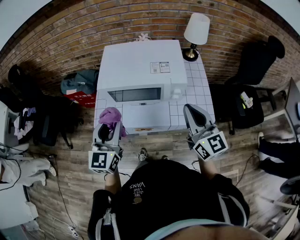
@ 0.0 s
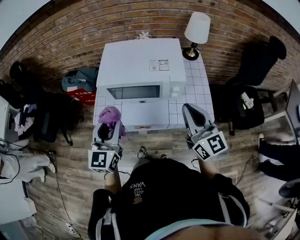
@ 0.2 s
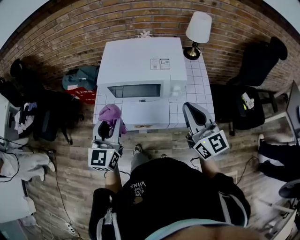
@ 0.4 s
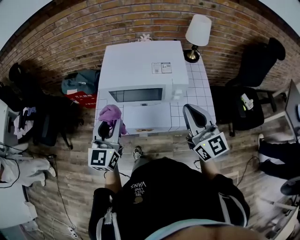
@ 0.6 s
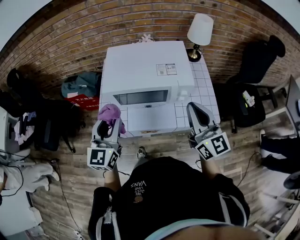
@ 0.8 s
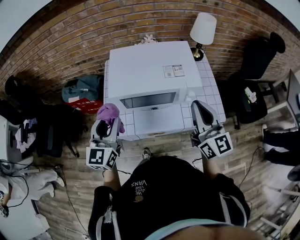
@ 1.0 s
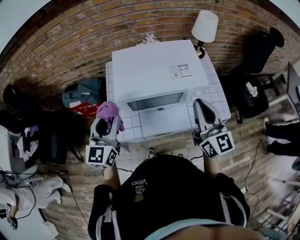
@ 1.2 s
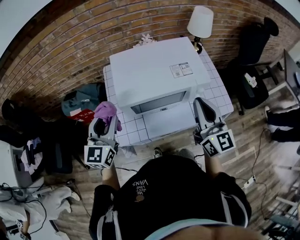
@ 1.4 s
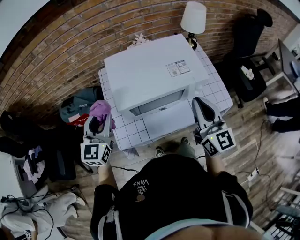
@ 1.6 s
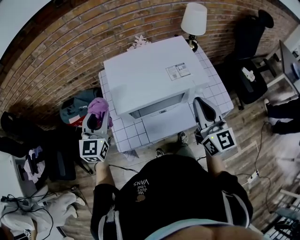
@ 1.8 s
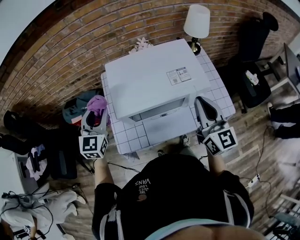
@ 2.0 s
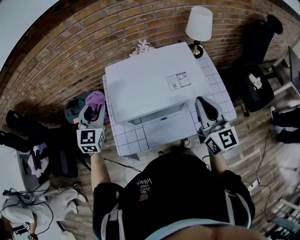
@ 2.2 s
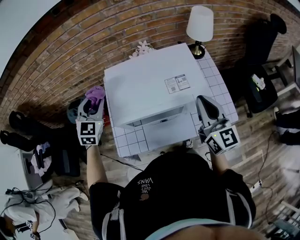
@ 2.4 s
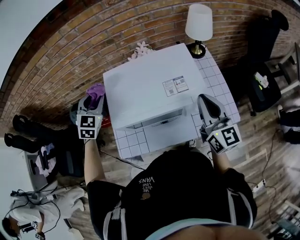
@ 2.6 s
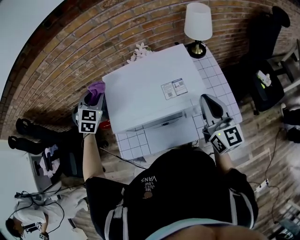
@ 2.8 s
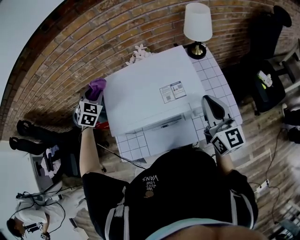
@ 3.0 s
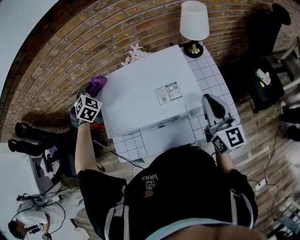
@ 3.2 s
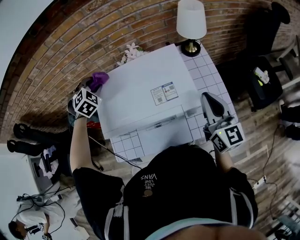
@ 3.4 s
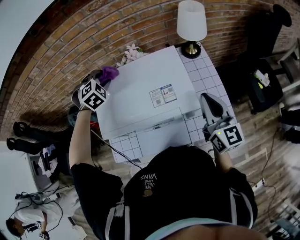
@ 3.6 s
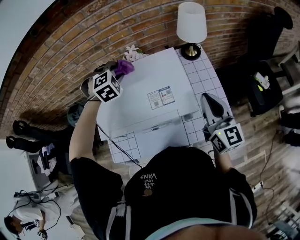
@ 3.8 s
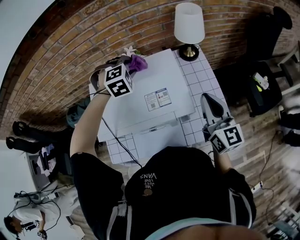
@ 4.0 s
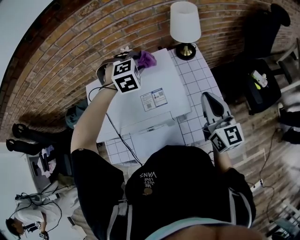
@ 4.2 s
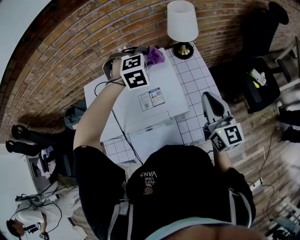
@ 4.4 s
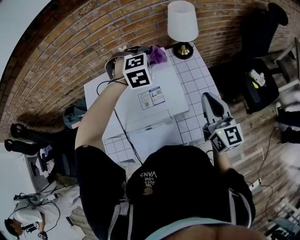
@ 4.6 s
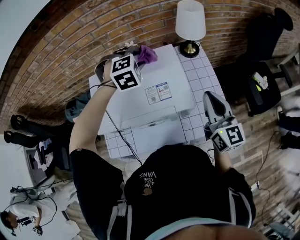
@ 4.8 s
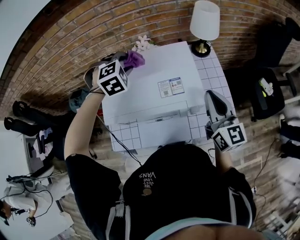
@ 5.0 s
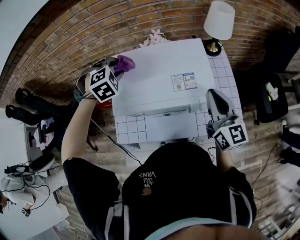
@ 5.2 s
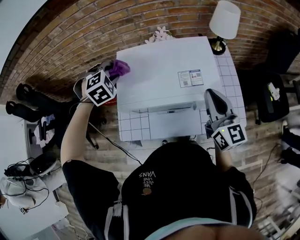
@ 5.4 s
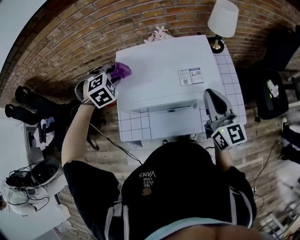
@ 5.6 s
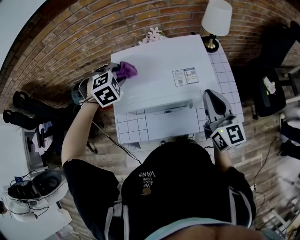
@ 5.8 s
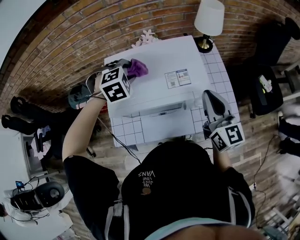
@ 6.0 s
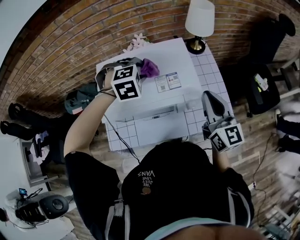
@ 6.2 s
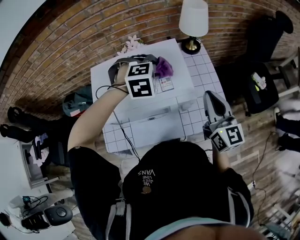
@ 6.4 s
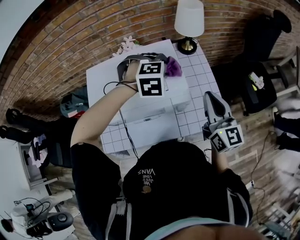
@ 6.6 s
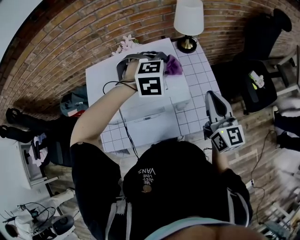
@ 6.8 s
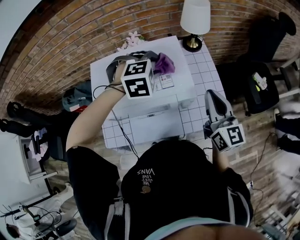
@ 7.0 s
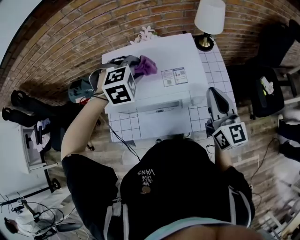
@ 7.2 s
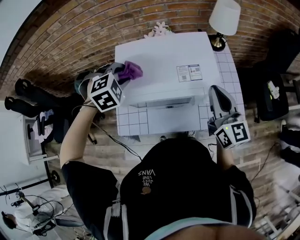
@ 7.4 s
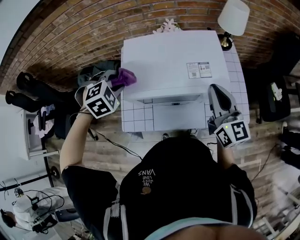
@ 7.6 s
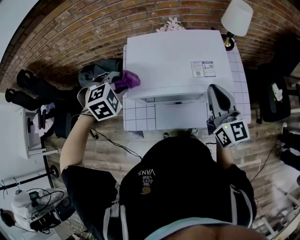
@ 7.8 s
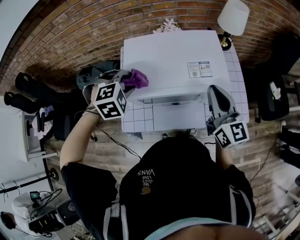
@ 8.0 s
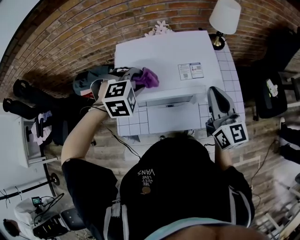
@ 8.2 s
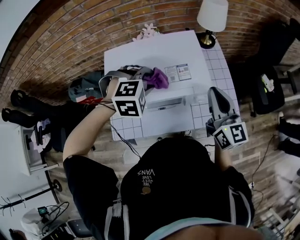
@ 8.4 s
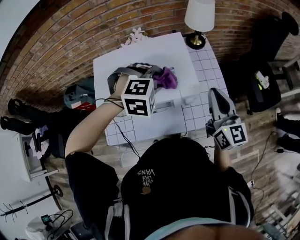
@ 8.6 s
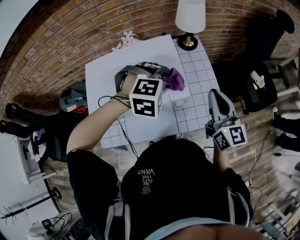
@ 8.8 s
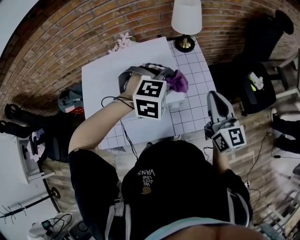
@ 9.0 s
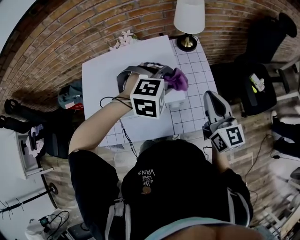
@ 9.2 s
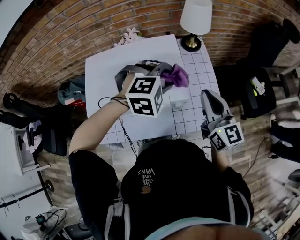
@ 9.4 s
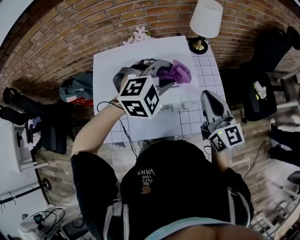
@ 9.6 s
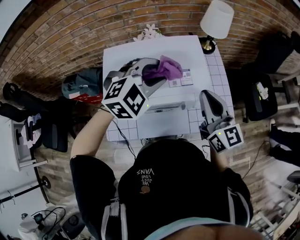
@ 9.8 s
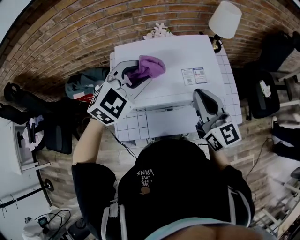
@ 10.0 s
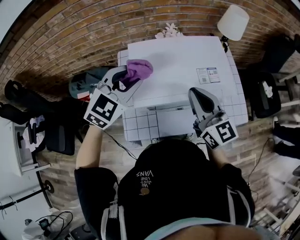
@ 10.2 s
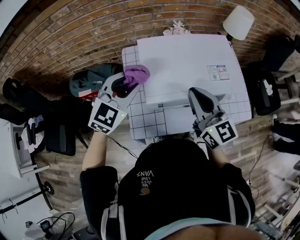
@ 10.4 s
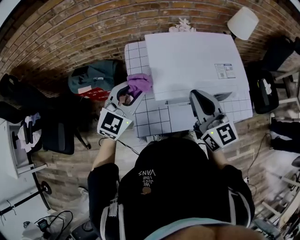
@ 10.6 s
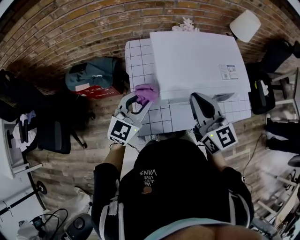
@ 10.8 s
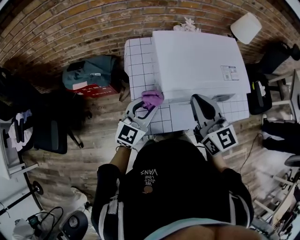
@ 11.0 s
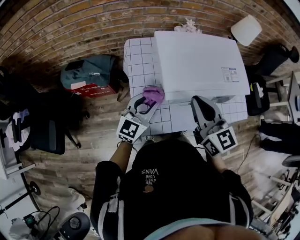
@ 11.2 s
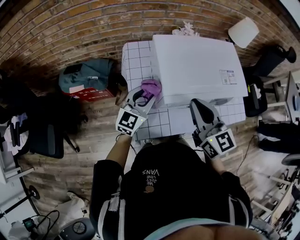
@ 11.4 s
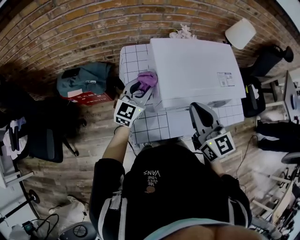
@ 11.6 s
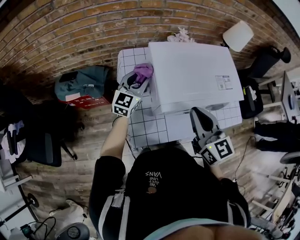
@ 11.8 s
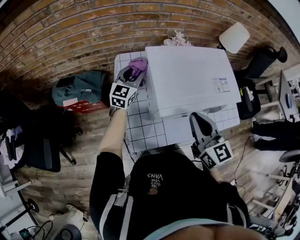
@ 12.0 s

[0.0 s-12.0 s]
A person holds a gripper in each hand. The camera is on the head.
0.0 to 1.6 s: The right gripper goes some 10 cm to the left and forward, and turns by some 20 degrees, while the left gripper travels forward and to the left by approximately 25 cm.
1.6 to 3.0 s: The left gripper moves forward, some 25 cm, and turns by approximately 50 degrees, while the right gripper moves forward and to the right, some 15 cm.
3.0 to 4.4 s: The left gripper moves to the right, about 35 cm, and changes its angle by roughly 40 degrees. The right gripper heads to the right, covering about 10 cm.
4.4 to 6.0 s: The right gripper travels to the left by about 10 cm. The left gripper shifts about 25 cm to the left and backward.
6.0 to 7.6 s: The right gripper shifts approximately 5 cm to the left. The left gripper heads backward, covering some 10 cm, and reaches about 25 cm to the right, then returns.
7.6 to 9.0 s: The right gripper moves roughly 20 cm; the left gripper moves roughly 40 cm, and changes its angle by some 40 degrees.
9.0 to 10.4 s: The two grippers go approximately 40 cm to the left. The left gripper tips its fingers upward by about 40 degrees.
10.4 to 12.0 s: The left gripper is displaced forward and downward by approximately 20 cm, and turns by approximately 30 degrees. Meanwhile the right gripper shifts by approximately 5 cm.

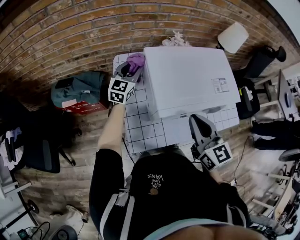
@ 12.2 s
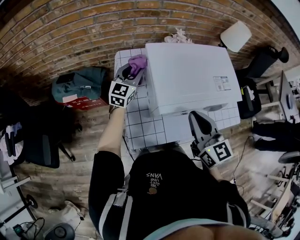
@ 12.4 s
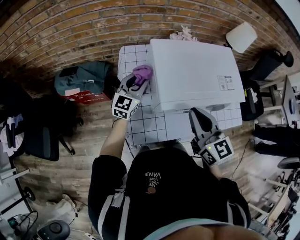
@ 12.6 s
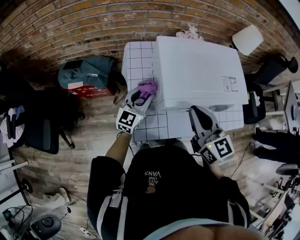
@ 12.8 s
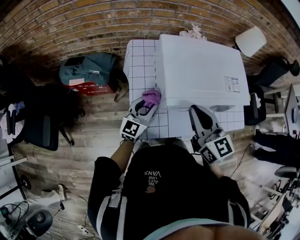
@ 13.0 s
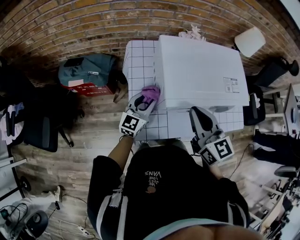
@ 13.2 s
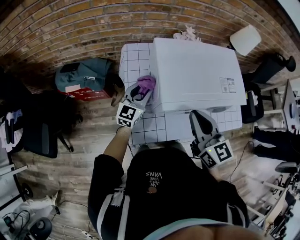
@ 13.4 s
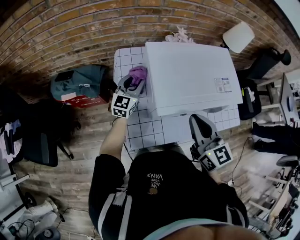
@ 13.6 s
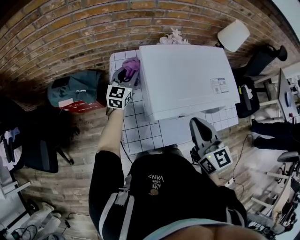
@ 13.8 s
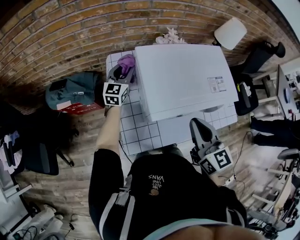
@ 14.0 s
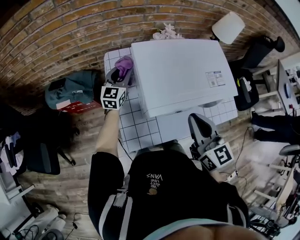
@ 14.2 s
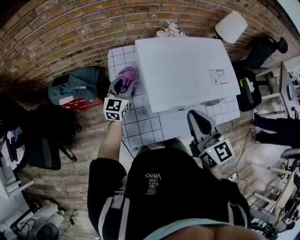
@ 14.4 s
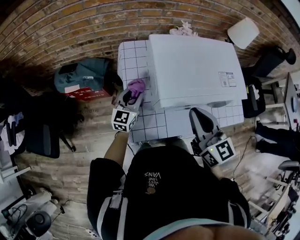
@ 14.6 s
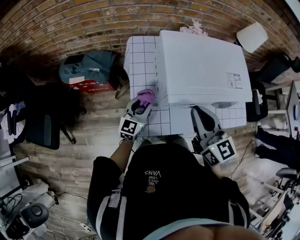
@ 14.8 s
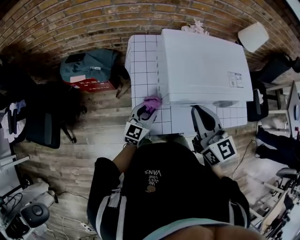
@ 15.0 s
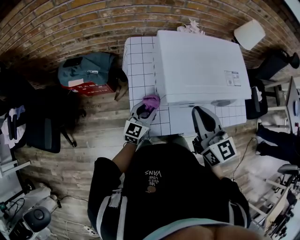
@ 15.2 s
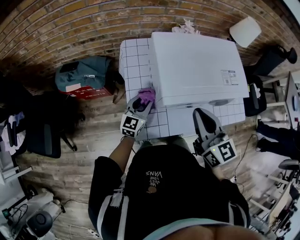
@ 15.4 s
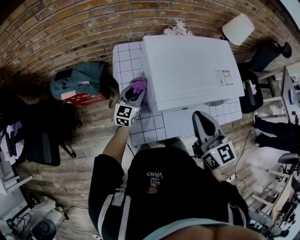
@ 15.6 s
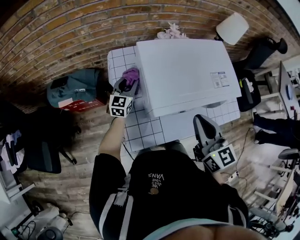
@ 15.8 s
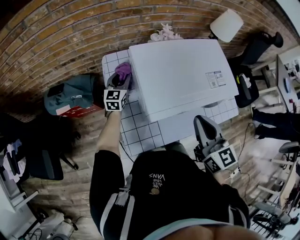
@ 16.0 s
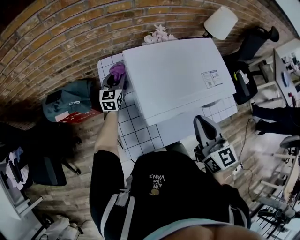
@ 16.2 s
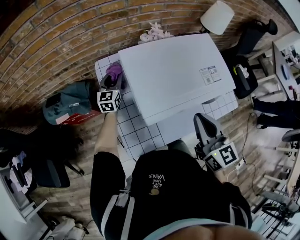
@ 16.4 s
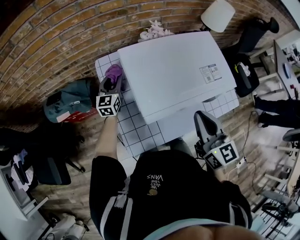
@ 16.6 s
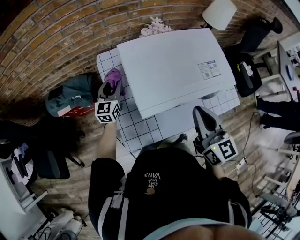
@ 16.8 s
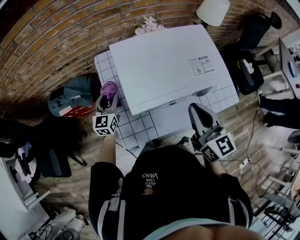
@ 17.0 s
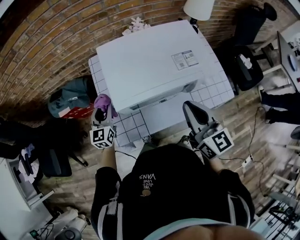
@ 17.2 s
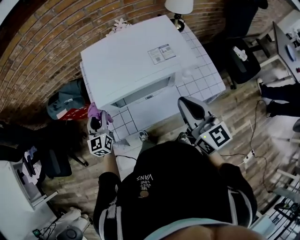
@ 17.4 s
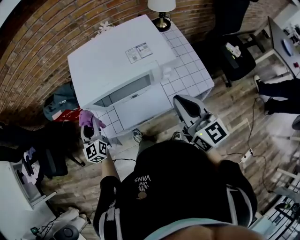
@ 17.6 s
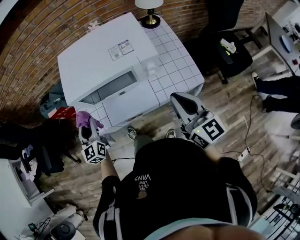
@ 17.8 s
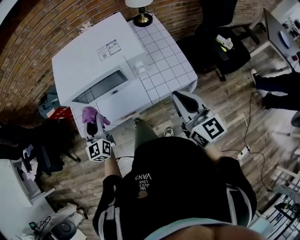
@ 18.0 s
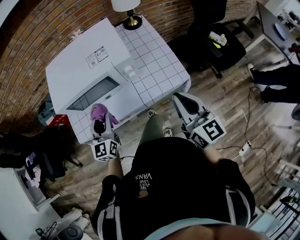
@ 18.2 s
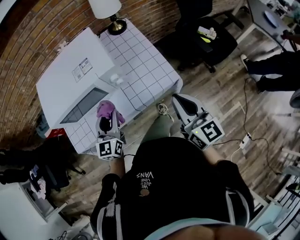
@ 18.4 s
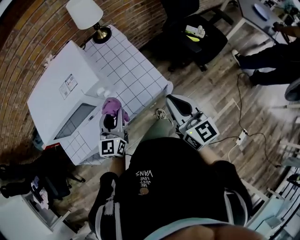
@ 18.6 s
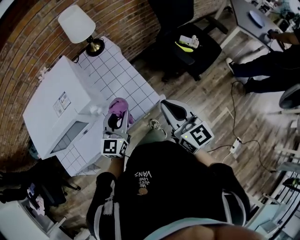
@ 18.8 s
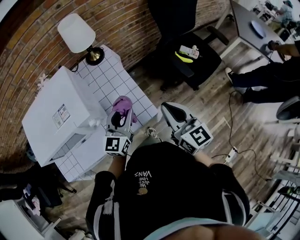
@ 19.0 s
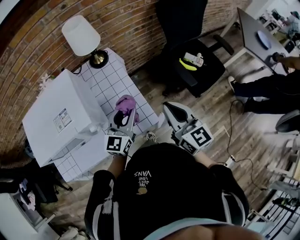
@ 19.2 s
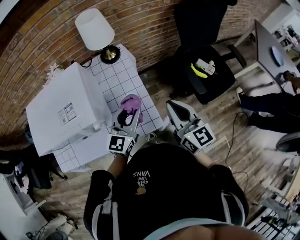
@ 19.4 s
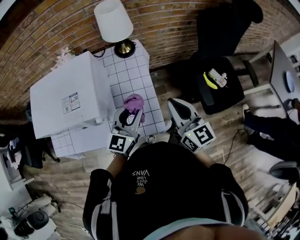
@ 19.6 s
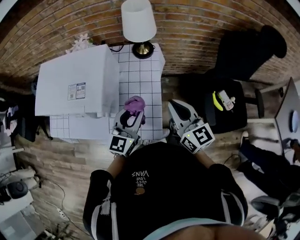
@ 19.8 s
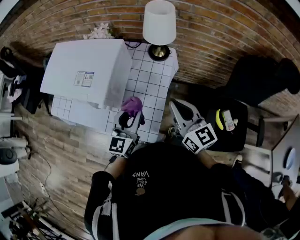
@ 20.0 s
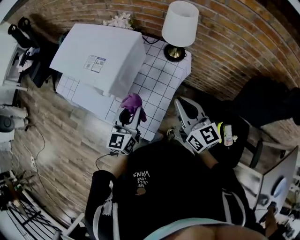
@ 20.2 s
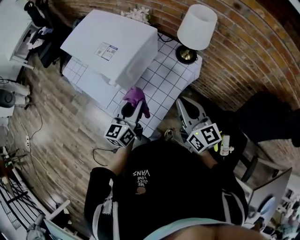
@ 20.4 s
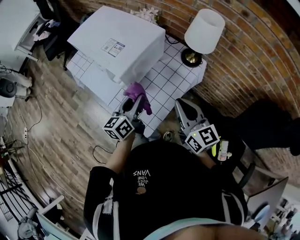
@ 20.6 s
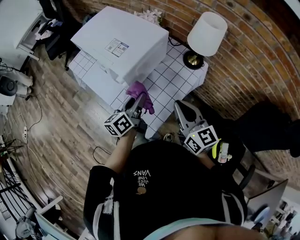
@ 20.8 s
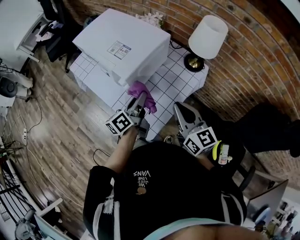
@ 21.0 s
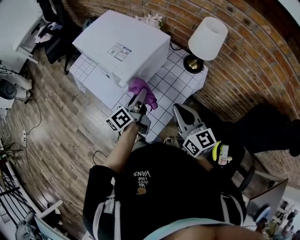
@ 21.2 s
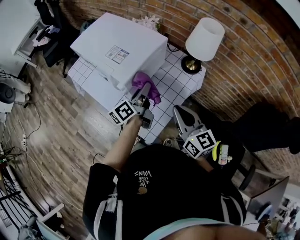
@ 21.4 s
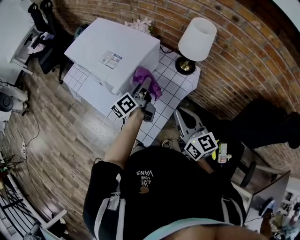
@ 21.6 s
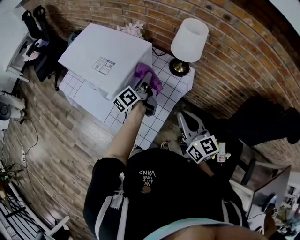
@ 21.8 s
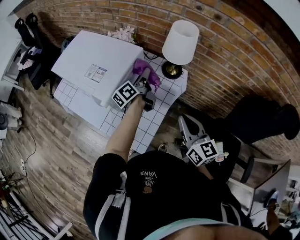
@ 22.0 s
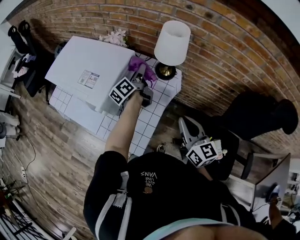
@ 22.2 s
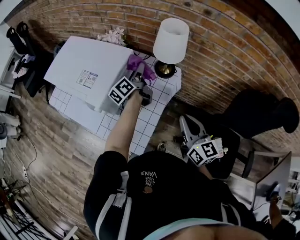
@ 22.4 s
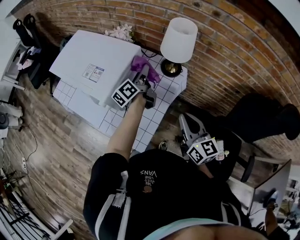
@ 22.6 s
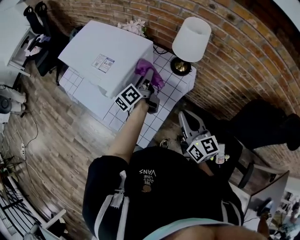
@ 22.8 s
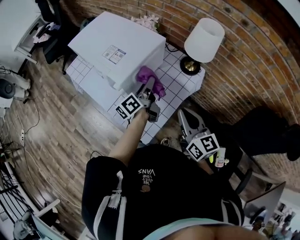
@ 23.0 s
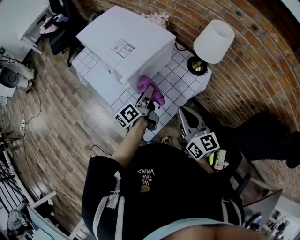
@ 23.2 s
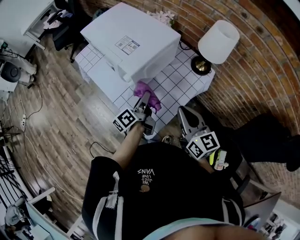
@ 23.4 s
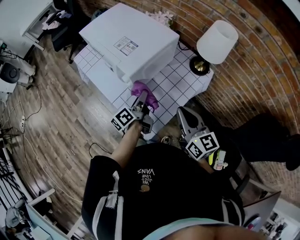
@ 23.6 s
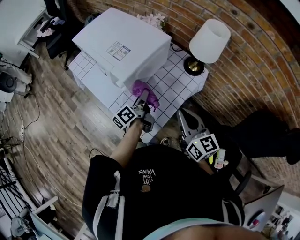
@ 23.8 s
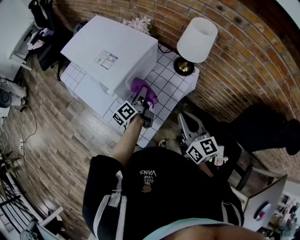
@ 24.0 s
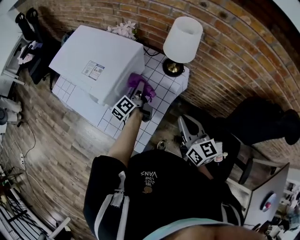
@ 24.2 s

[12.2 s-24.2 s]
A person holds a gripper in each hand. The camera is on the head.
12.2 to 13.8 s: The left gripper goes backward and returns, roughly 20 cm each way.
13.8 to 15.2 s: The left gripper moves backward, roughly 25 cm.
15.2 to 16.6 s: The left gripper heads forward, covering some 25 cm. Meanwhile the right gripper travels to the right by approximately 10 cm.
16.6 to 18.2 s: The left gripper is displaced backward and to the right by some 50 cm, while the right gripper travels to the right and backward by some 40 cm.
18.2 to 19.8 s: The right gripper changes place by roughly 30 cm, and swivels approximately 30 degrees. The left gripper changes place by some 40 cm.
19.8 to 21.2 s: The left gripper moves some 10 cm, and swivels about 70 degrees. Meanwhile the right gripper shifts by some 5 cm, and rotates roughly 40 degrees.
21.2 to 22.6 s: The left gripper moves forward and to the right, approximately 20 cm. Meanwhile the right gripper goes approximately 10 cm to the right.
22.6 to 24.2 s: The right gripper goes to the left and returns, approximately 10 cm each way. Meanwhile the left gripper shifts some 10 cm downward, and goes backward and returns, roughly 15 cm each way.
